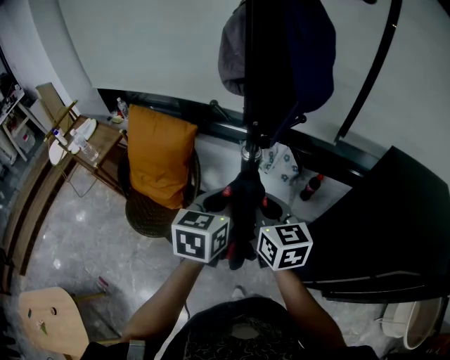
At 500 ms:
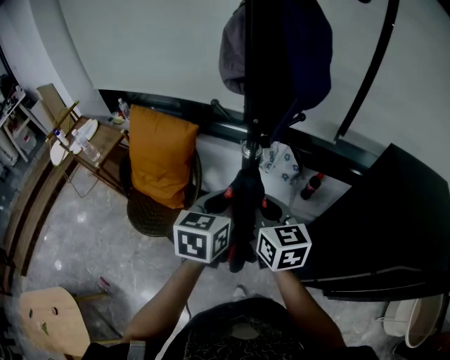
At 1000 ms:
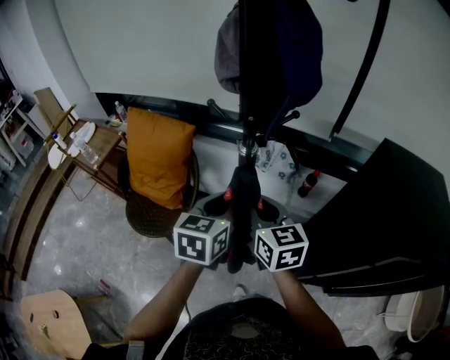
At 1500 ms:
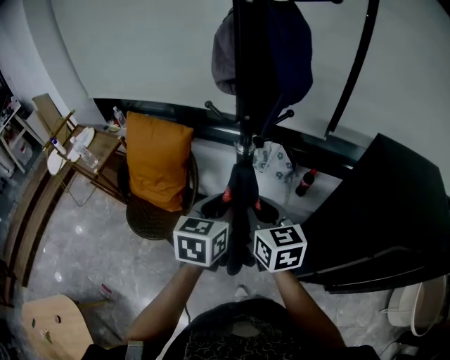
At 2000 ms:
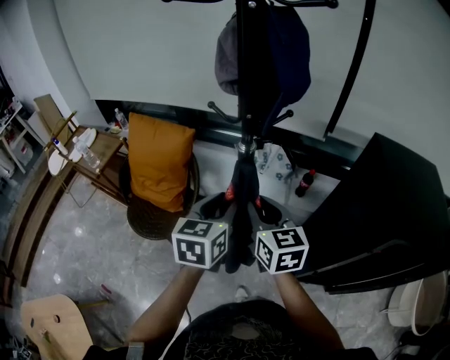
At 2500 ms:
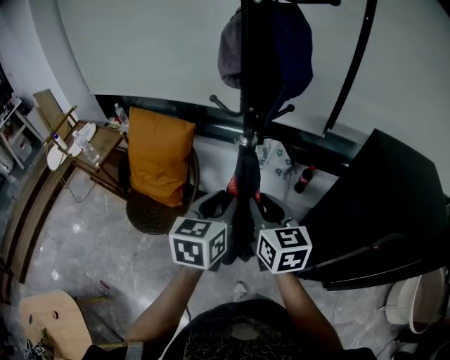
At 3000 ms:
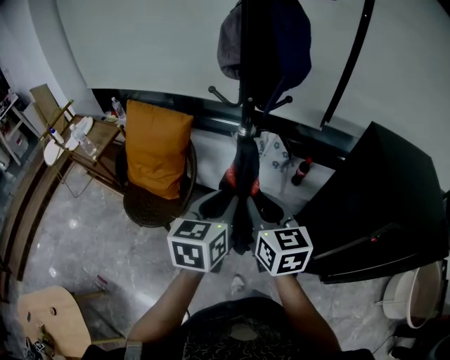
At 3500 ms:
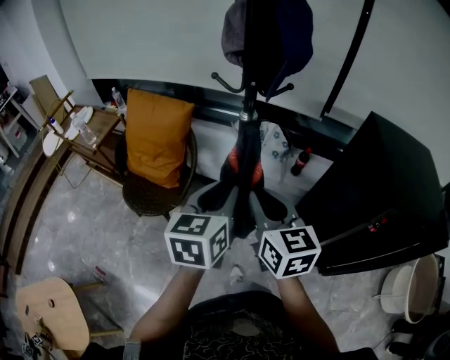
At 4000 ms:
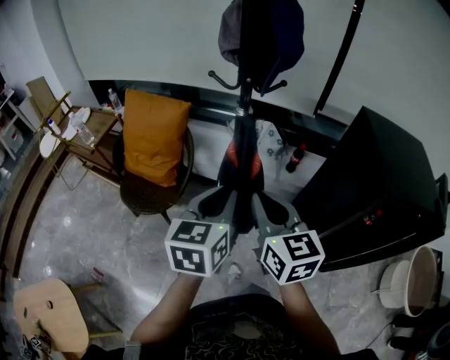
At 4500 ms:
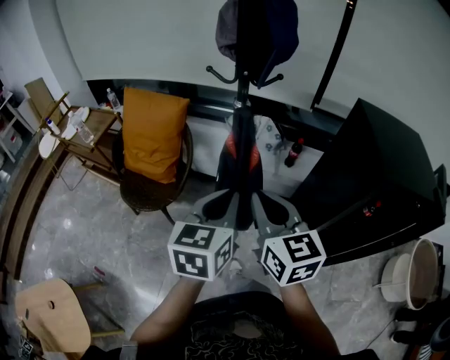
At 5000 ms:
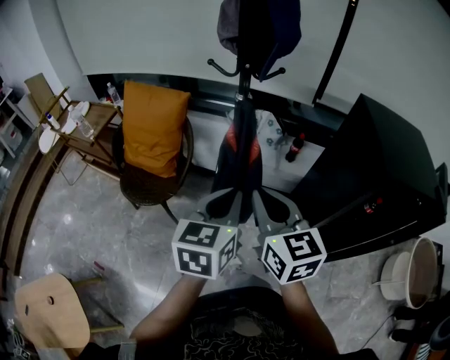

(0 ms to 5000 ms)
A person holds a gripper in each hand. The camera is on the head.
0 ms - 2500 ms: The two grippers go approximately 10 cm backward.
2500 ms - 5000 ms: Both grippers travel together backward, approximately 15 cm. The left gripper closes its fingers.

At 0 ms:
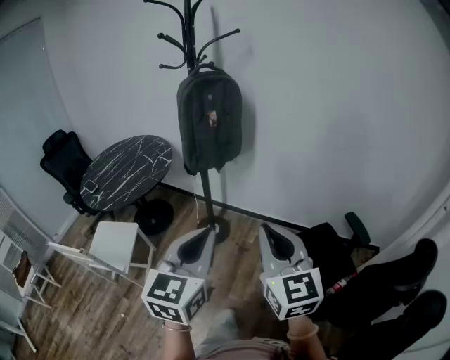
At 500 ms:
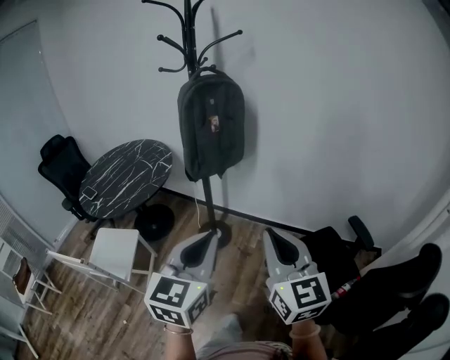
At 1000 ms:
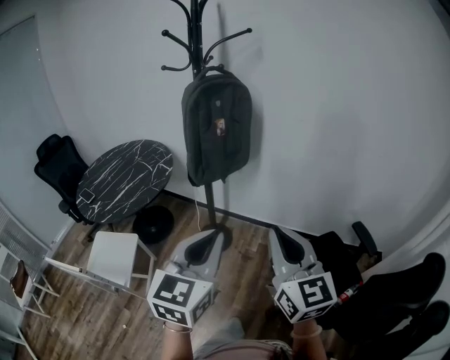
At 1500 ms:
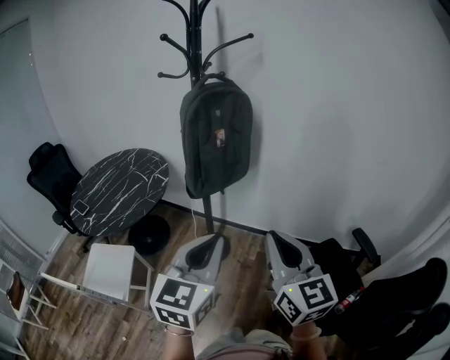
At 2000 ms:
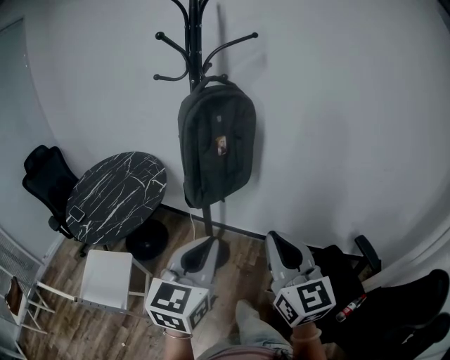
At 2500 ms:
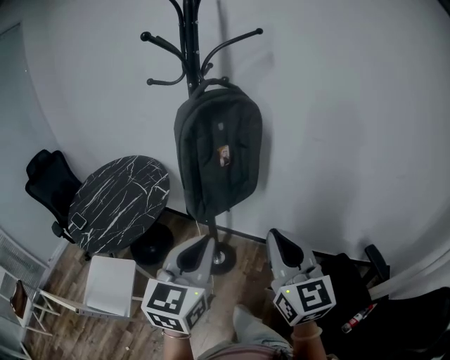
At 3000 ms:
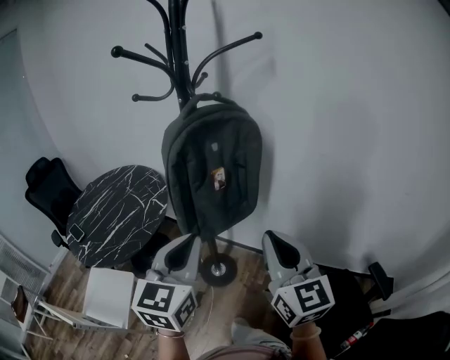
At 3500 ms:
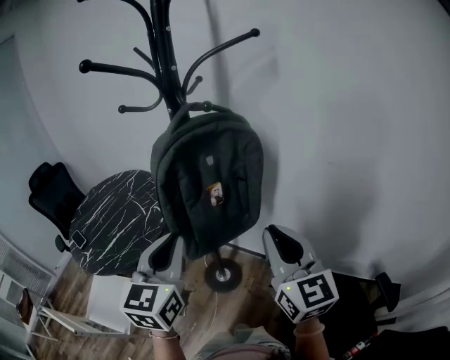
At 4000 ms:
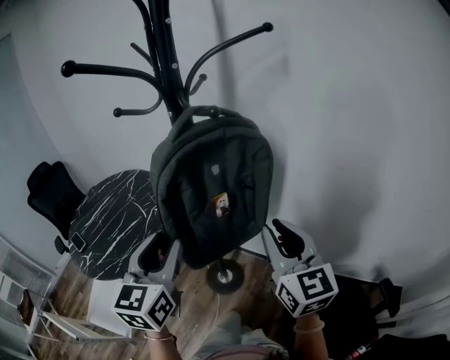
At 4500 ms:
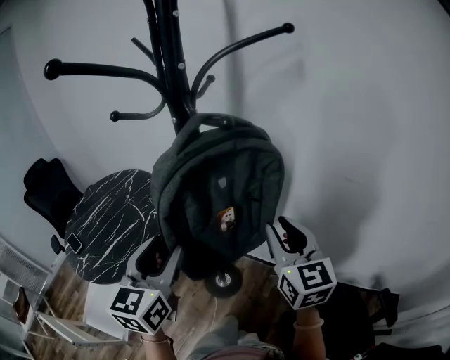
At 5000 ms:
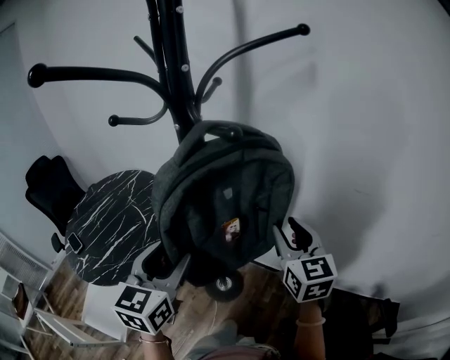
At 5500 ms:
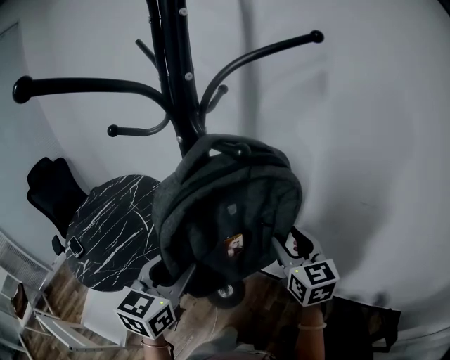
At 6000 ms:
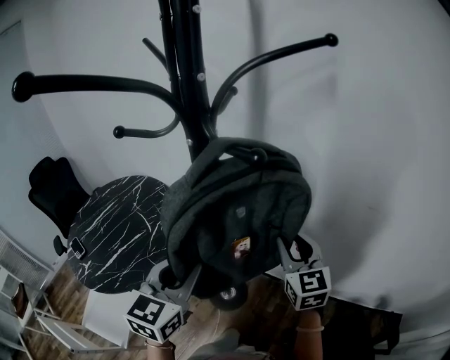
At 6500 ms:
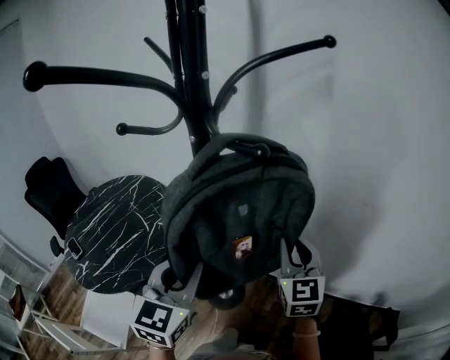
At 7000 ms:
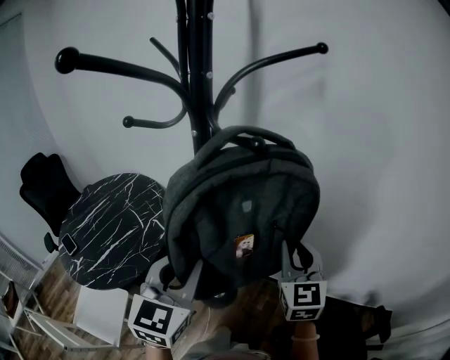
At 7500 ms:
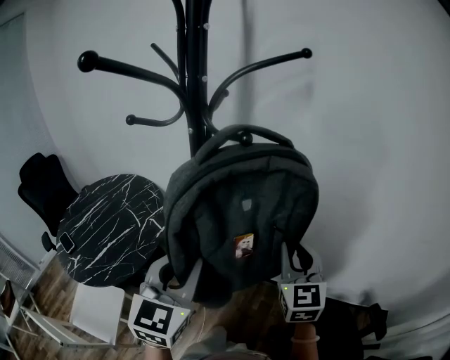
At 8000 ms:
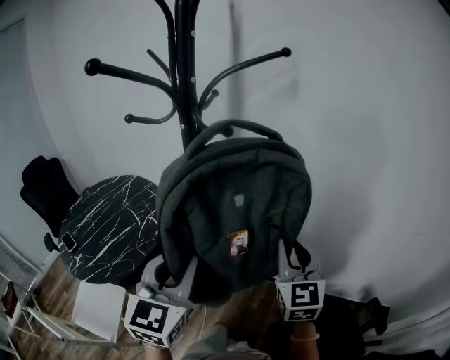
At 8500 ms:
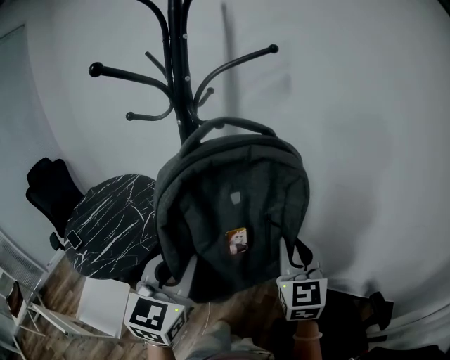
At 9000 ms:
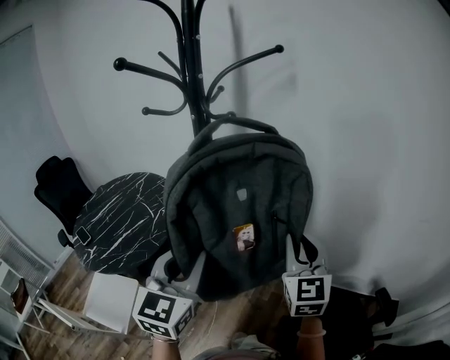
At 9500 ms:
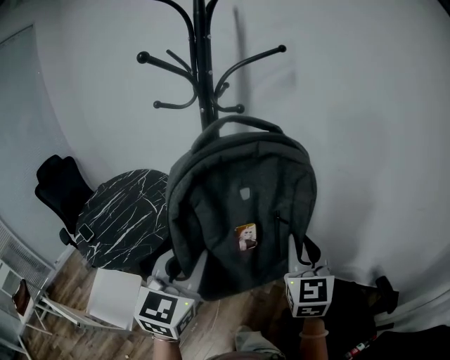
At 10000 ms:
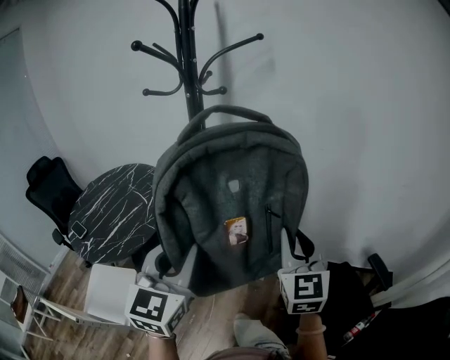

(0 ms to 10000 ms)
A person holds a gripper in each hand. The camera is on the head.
0 ms - 2000 ms: The right gripper moves forward, roughly 15 cm. Meanwhile the left gripper moves forward and to the left, roughly 20 cm.
2000 ms - 4000 ms: The two grippers go about 30 cm forward. The right gripper opens, while the left gripper opens.
4000 ms - 6000 ms: The right gripper moves forward and downward, about 15 cm. Meanwhile the left gripper heads forward, covering roughly 10 cm.
6000 ms - 8000 ms: The left gripper goes about 10 cm backward and upward. The right gripper heads backward, upward and to the right, covering about 15 cm.
8000 ms - 10000 ms: The two grippers go roughly 15 cm backward.

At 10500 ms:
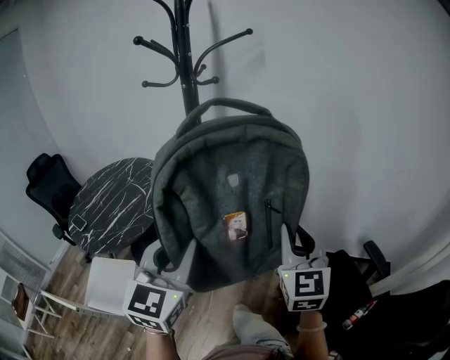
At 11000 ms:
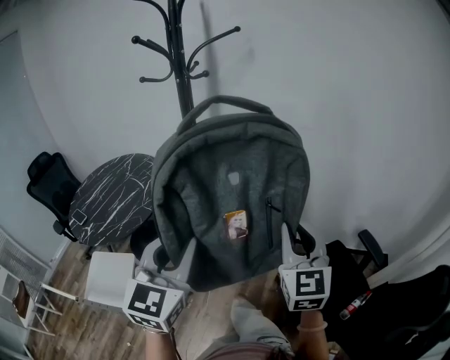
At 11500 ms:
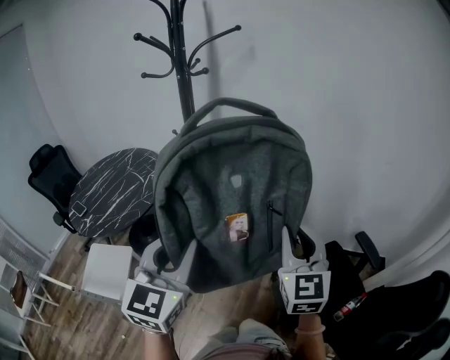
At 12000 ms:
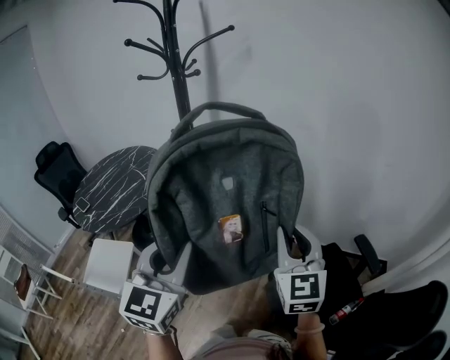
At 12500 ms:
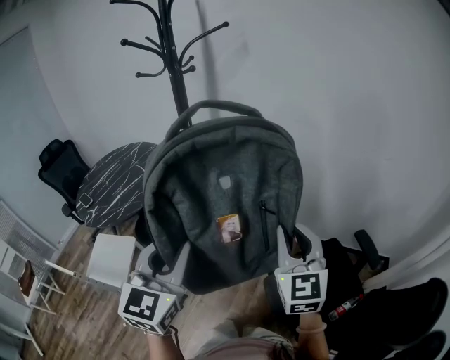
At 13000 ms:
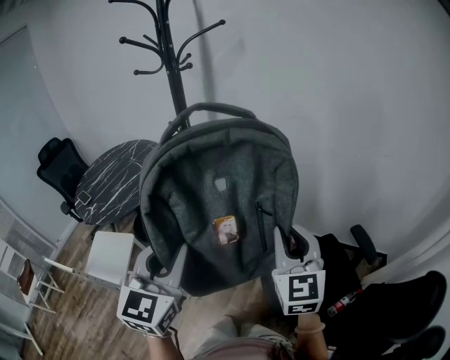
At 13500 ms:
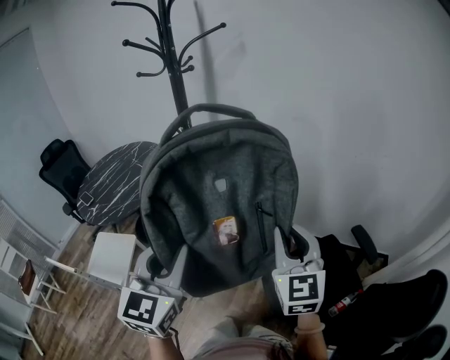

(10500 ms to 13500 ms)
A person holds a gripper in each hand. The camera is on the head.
10500 ms - 12000 ms: The grippers both shift backward and to the right by roughly 15 cm.
12000 ms - 13500 ms: There are only small adjustments of the grippers.

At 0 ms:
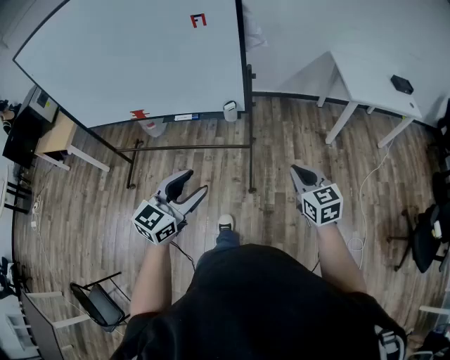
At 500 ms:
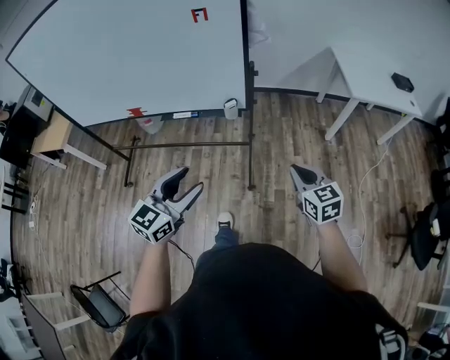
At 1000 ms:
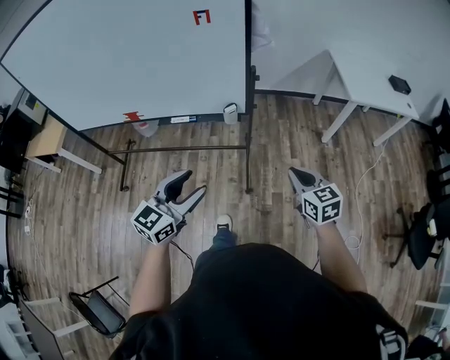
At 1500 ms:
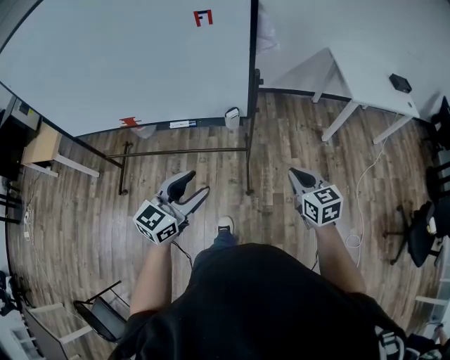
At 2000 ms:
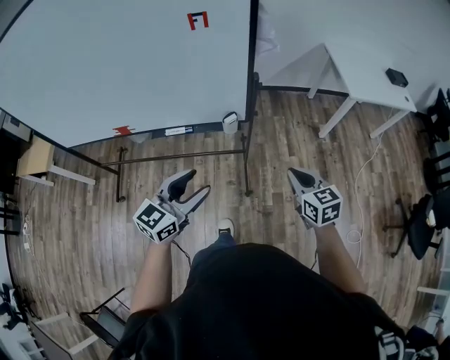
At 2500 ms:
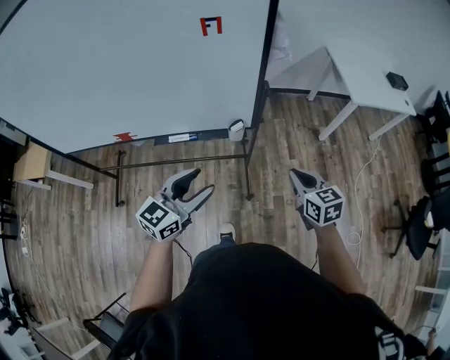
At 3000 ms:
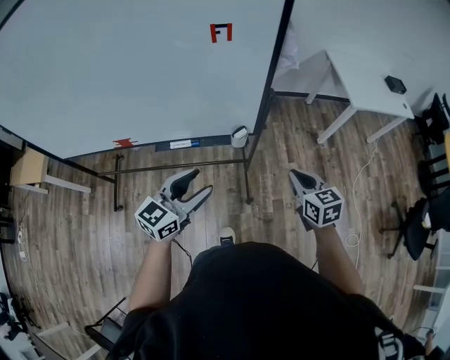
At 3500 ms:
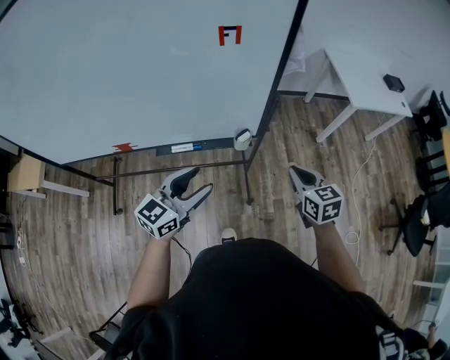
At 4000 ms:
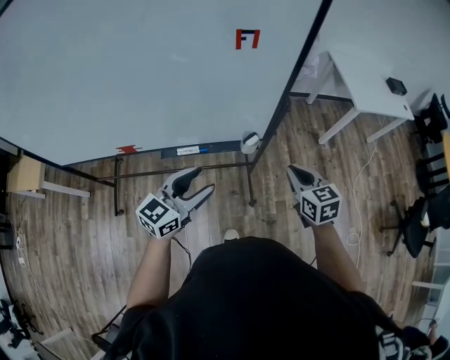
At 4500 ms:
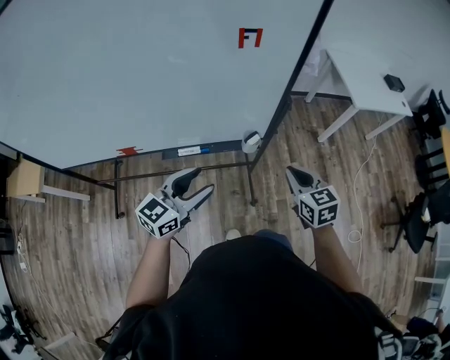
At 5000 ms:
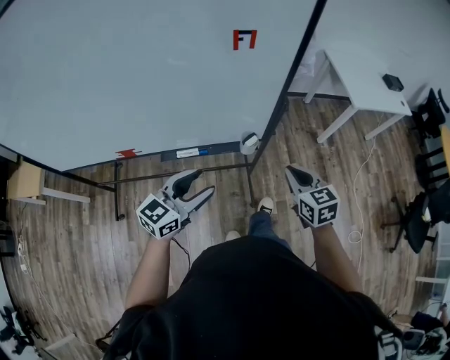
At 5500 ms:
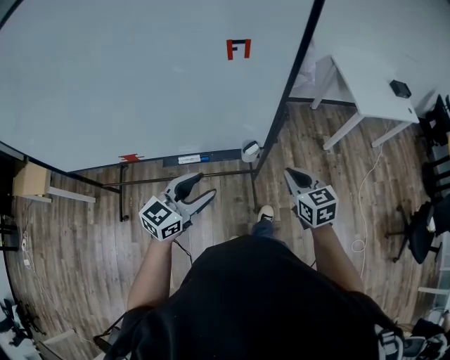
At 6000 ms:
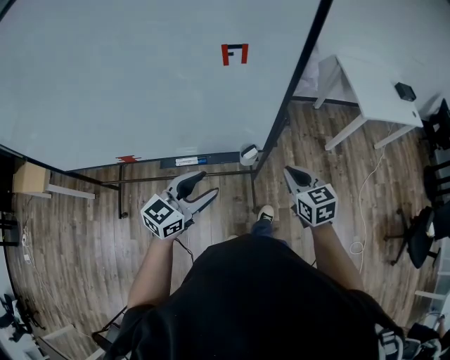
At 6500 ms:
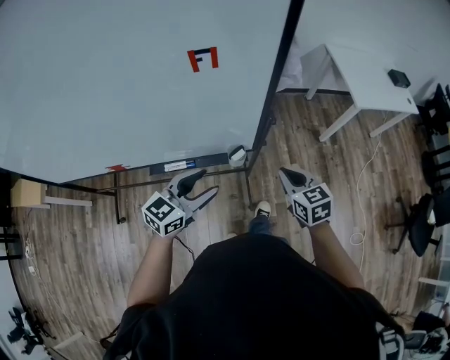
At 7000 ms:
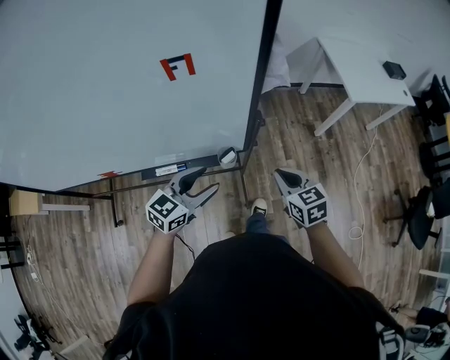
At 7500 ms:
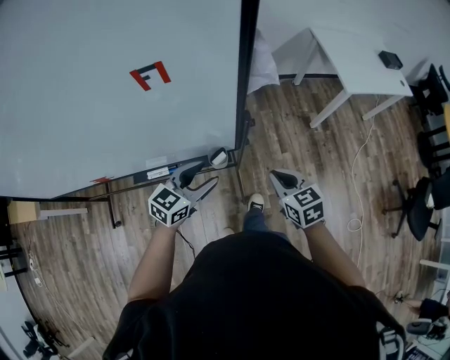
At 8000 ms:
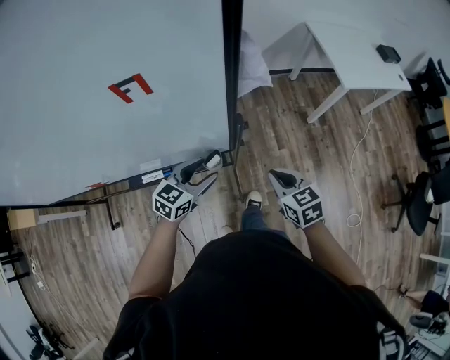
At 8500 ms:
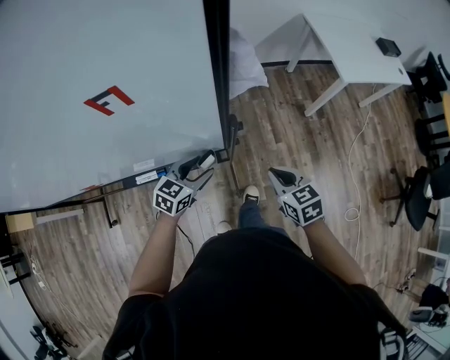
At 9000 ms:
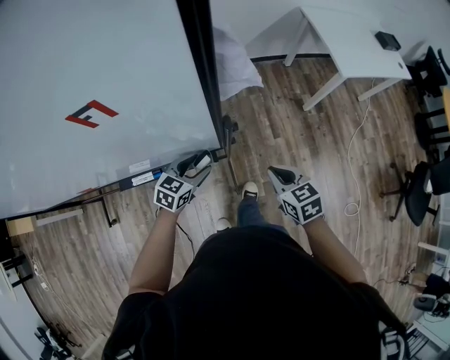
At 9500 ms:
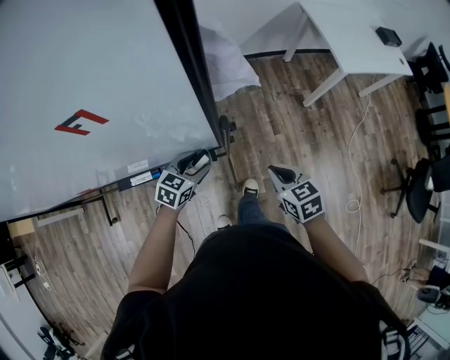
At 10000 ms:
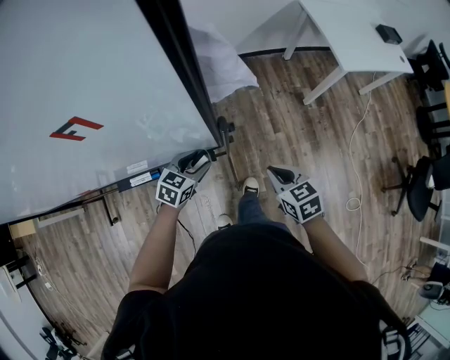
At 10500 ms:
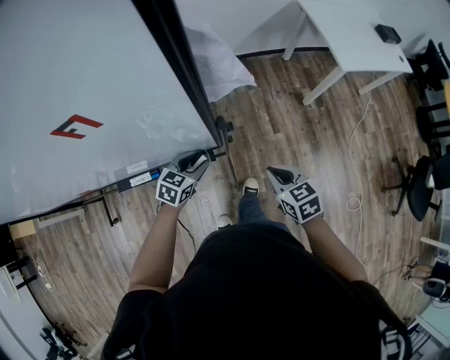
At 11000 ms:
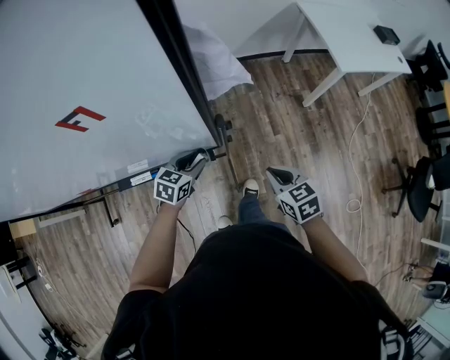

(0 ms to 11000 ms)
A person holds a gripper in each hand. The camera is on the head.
0 ms - 2000 ms: Both grippers move forward and to the left, roughly 15 cm.
2000 ms - 3500 ms: Both grippers travel together to the left and forward, some 10 cm.
3500 ms - 5500 ms: The right gripper ends up about 5 cm from where it was.
5500 ms - 7500 ms: The right gripper is displaced forward, to the right and downward by some 10 cm; the left gripper heads forward, to the right and downward, covering roughly 20 cm.
7500 ms - 9000 ms: The right gripper moves roughly 5 cm; the left gripper moves downward and forward, approximately 15 cm.
9000 ms - 11000 ms: There are only small adjustments of the grippers.
